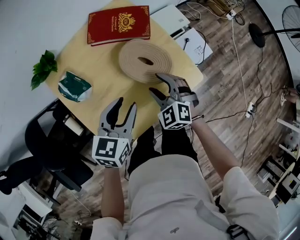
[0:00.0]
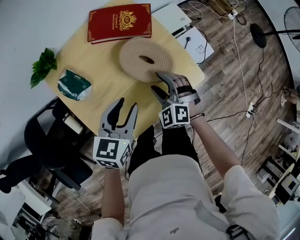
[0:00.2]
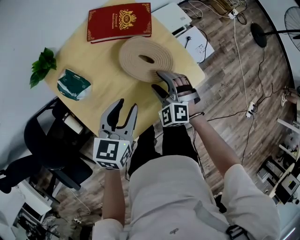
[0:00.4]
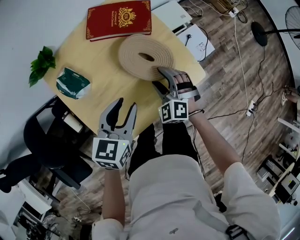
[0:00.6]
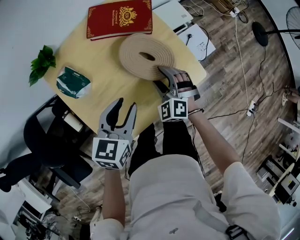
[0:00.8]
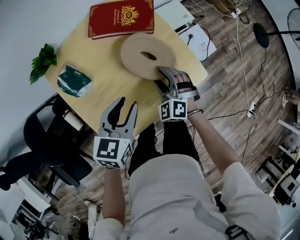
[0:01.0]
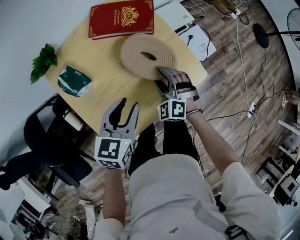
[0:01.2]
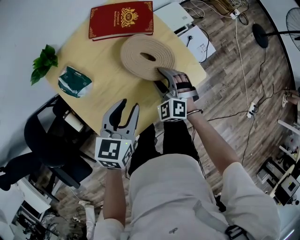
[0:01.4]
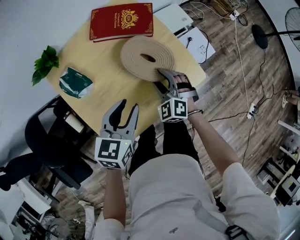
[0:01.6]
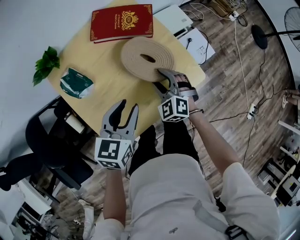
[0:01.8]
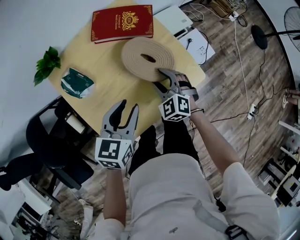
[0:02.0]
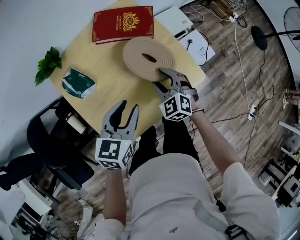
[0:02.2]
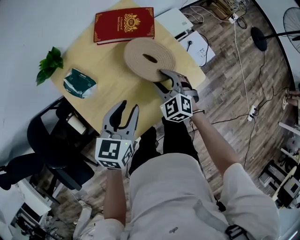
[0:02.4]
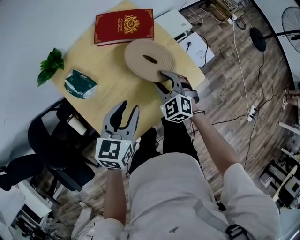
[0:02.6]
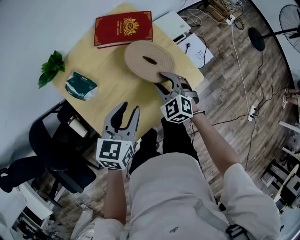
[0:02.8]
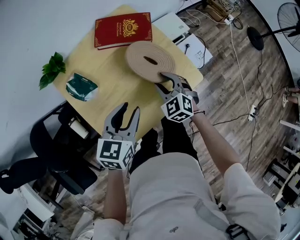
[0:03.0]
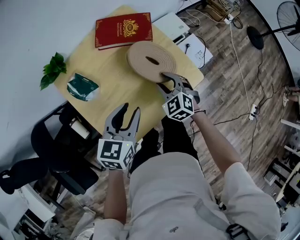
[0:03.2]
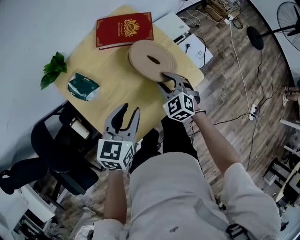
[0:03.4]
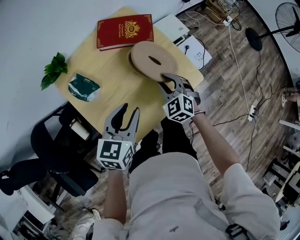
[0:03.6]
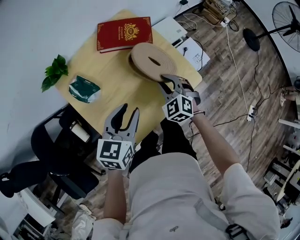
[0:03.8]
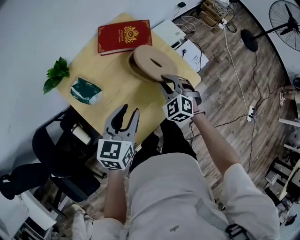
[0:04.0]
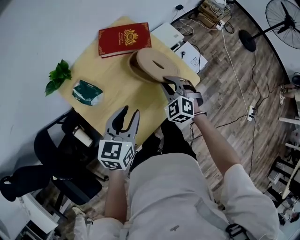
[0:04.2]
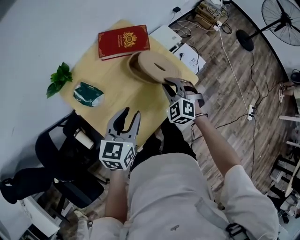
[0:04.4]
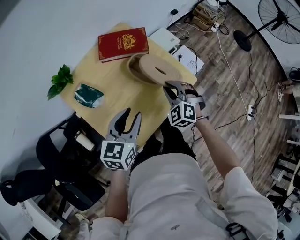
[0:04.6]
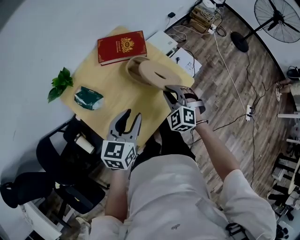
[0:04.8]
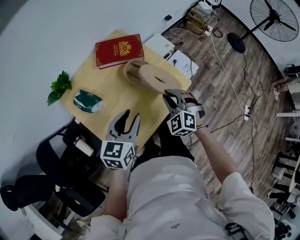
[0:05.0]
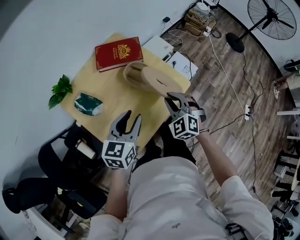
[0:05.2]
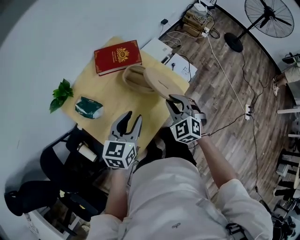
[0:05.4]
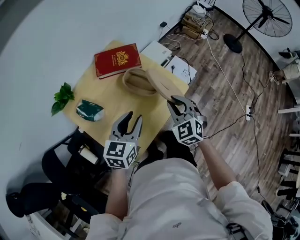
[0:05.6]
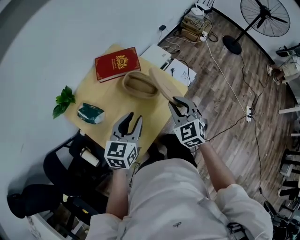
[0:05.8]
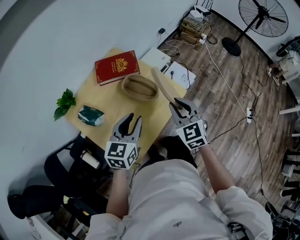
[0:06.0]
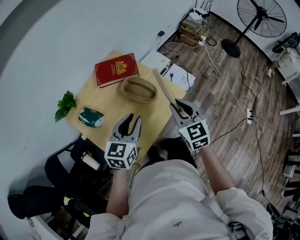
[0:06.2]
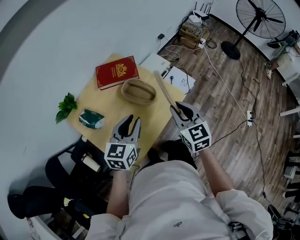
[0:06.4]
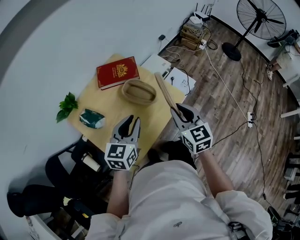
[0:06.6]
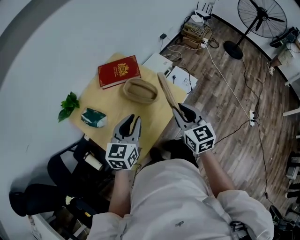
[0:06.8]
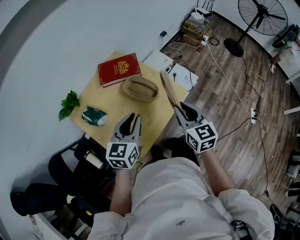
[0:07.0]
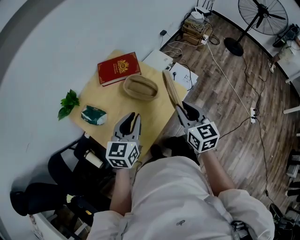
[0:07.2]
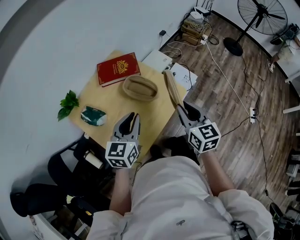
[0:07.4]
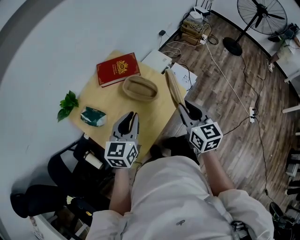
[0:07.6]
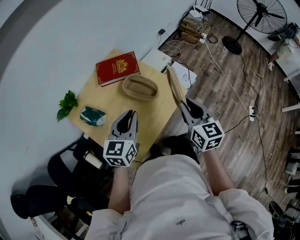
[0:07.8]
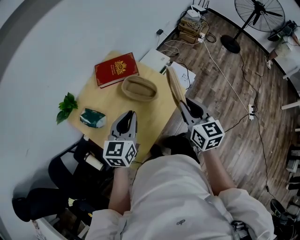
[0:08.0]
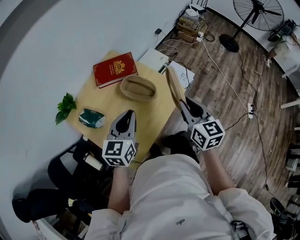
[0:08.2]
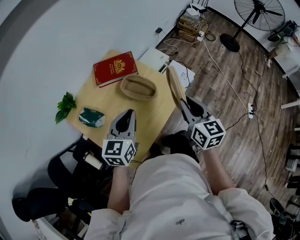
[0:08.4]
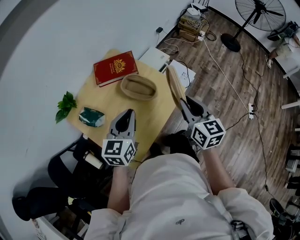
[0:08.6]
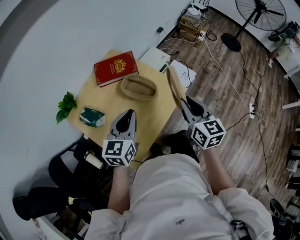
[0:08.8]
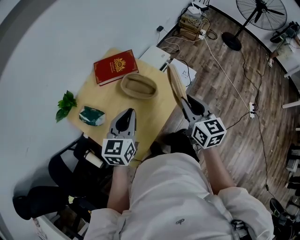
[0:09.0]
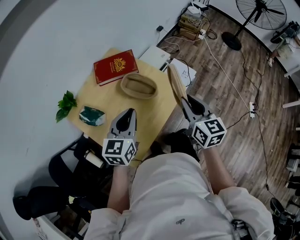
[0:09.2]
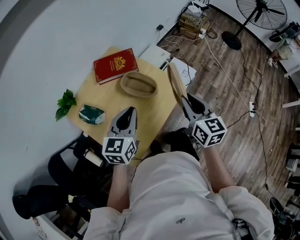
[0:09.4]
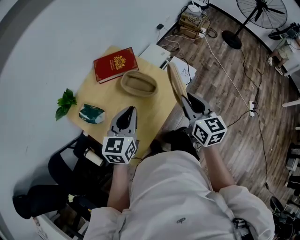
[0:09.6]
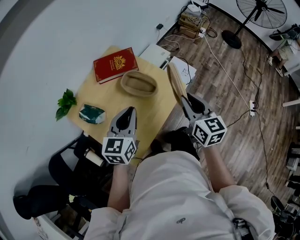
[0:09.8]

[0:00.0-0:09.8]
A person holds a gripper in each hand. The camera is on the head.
0:00.0 to 0:02.8: The grippers stay close to where they were, moving slightly.
0:02.8 to 0:04.2: The grippers move only a little.
0:04.2 to 0:05.6: The right gripper is displaced upward, backward and to the right by roughly 15 cm.
0:05.6 to 0:07.0: The right gripper moves upward and to the right, some 10 cm, and rotates about 40 degrees.
0:07.0 to 0:08.4: The grippers move only a little.
0:08.4 to 0:09.8: Neither gripper changes place.

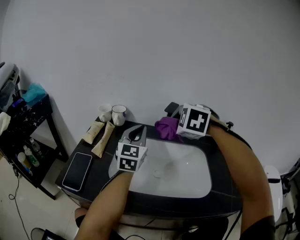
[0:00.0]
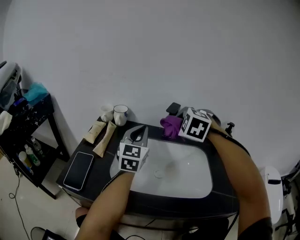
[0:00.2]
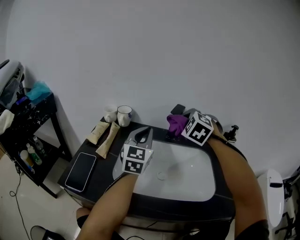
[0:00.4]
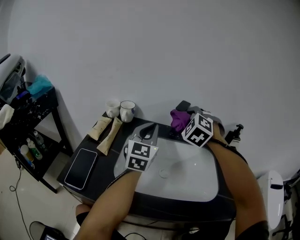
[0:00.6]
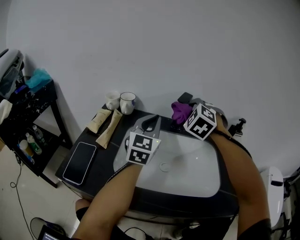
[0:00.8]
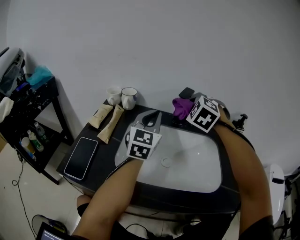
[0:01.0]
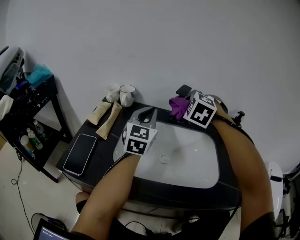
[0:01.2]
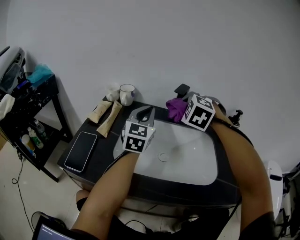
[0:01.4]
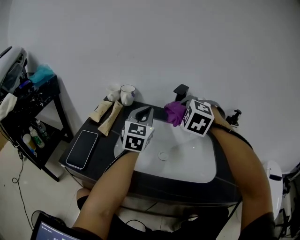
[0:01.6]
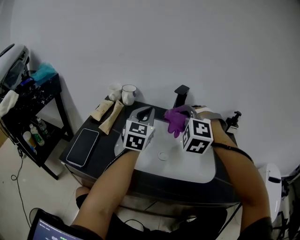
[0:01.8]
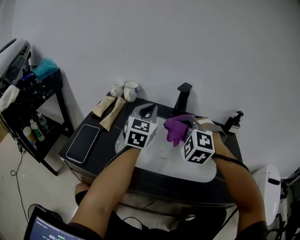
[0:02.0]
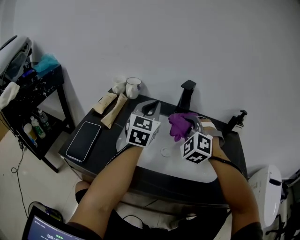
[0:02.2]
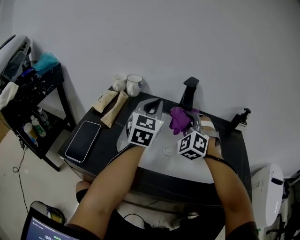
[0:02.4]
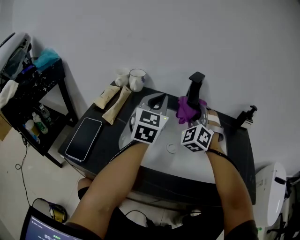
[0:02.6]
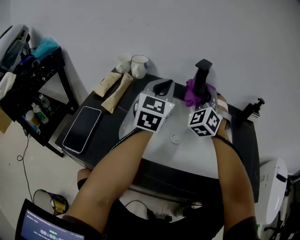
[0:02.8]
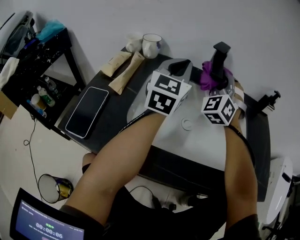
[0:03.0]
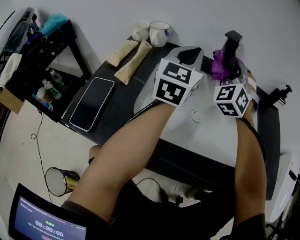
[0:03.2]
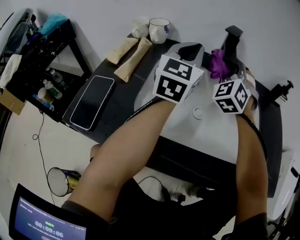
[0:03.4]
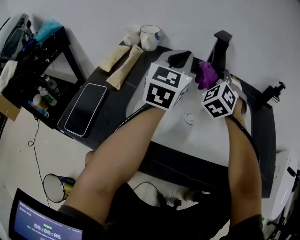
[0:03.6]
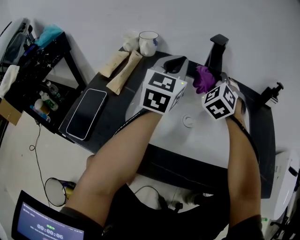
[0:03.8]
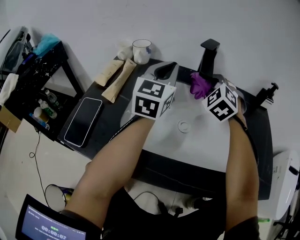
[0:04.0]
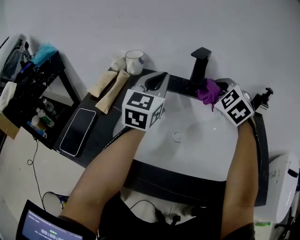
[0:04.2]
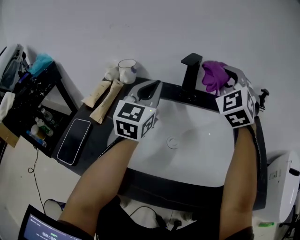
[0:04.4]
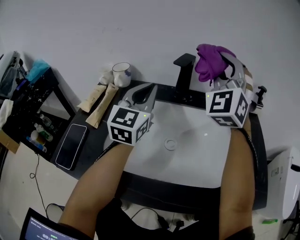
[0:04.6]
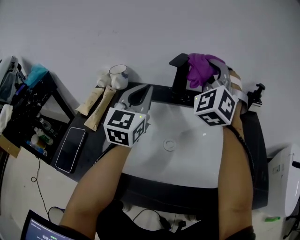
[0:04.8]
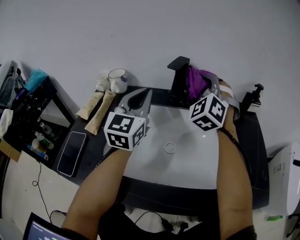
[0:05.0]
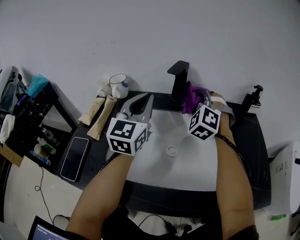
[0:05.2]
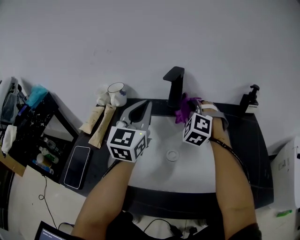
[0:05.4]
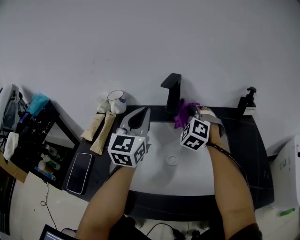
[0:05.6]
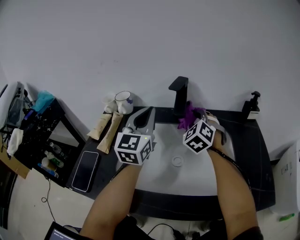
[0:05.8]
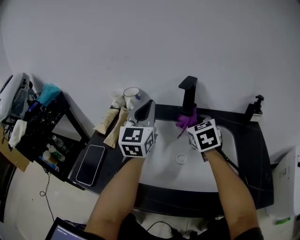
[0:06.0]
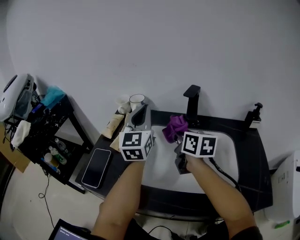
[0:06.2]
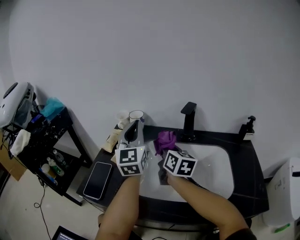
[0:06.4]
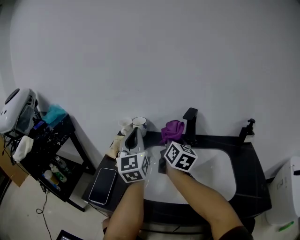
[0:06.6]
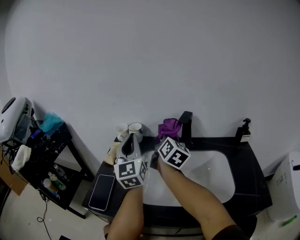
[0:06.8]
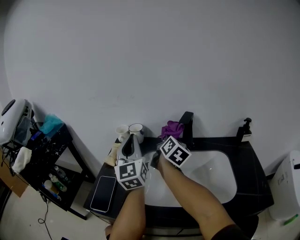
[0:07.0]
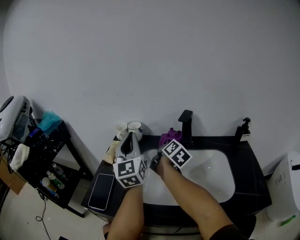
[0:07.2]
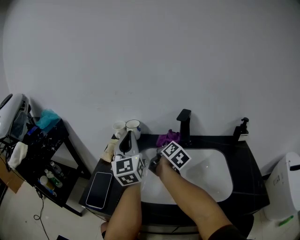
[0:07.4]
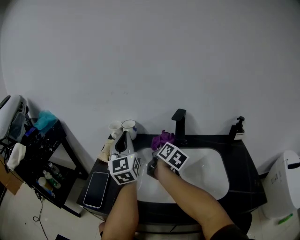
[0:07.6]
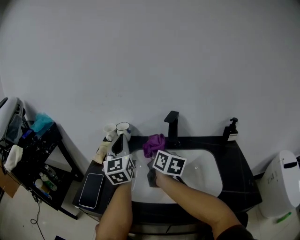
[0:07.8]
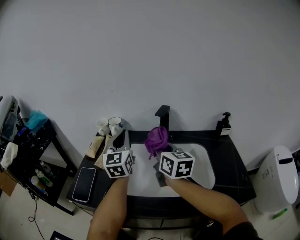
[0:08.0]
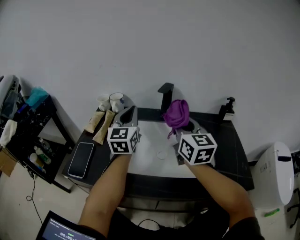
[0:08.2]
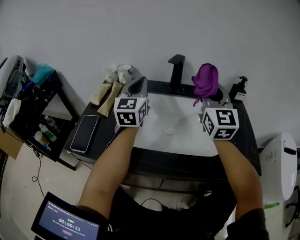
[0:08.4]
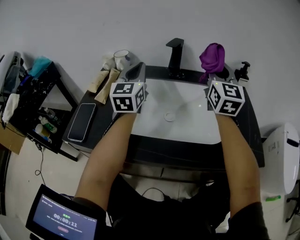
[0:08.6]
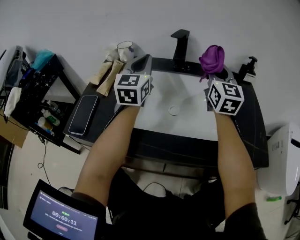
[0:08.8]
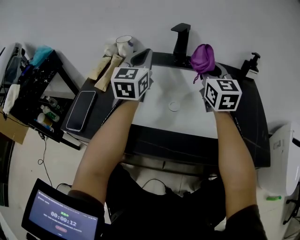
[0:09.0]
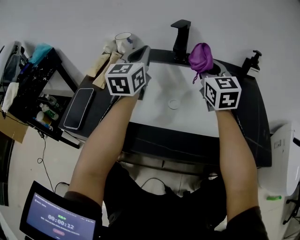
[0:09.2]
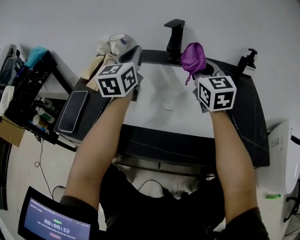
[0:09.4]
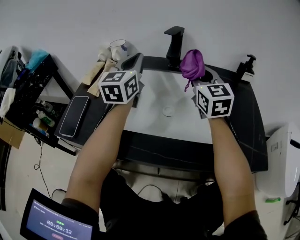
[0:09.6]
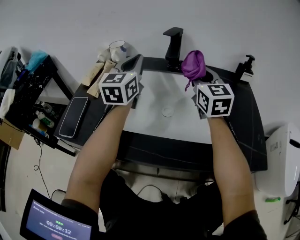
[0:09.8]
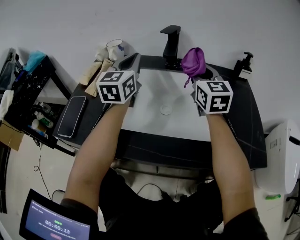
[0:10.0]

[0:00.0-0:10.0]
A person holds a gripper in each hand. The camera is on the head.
0:01.4 to 0:02.8: The right gripper moves approximately 10 cm backward and comes back, and points its fingers approximately 30 degrees further upward.
0:02.8 to 0:04.2: The right gripper rotates approximately 30 degrees.
0:04.2 to 0:05.8: The right gripper reaches roughly 15 cm upward, then returns.
0:05.8 to 0:07.2: Both grippers travel together to the left, roughly 10 cm. The left gripper changes its angle by roughly 20 degrees, while the right gripper rotates around the line of its fingers by about 100 degrees, clockwise from behind.
0:07.2 to 0:08.6: The right gripper goes approximately 25 cm to the right, upward and backward, and rolls counterclockwise, seen from behind, by some 60 degrees. Meanwhile the left gripper travels to the right by approximately 10 cm.
0:08.6 to 0:10.0: The right gripper heads downward, covering some 10 cm.

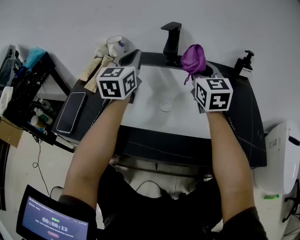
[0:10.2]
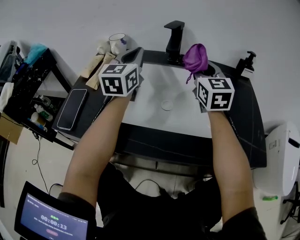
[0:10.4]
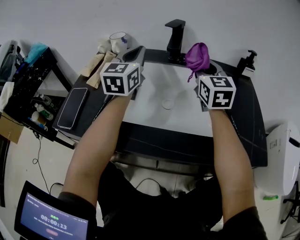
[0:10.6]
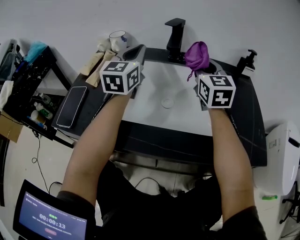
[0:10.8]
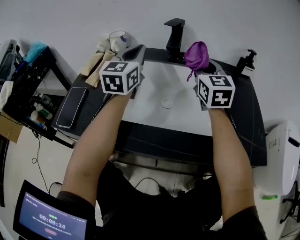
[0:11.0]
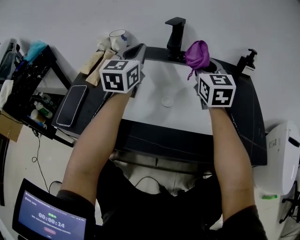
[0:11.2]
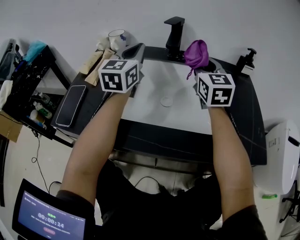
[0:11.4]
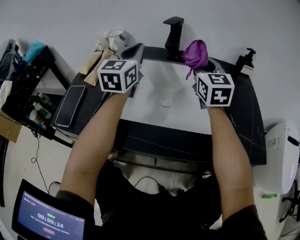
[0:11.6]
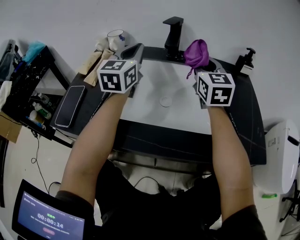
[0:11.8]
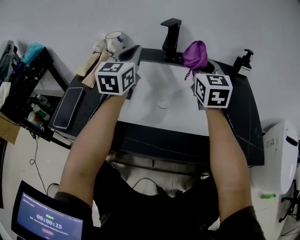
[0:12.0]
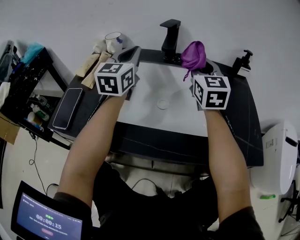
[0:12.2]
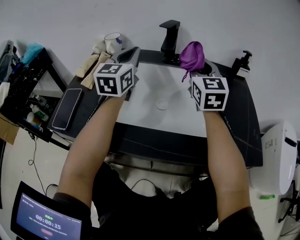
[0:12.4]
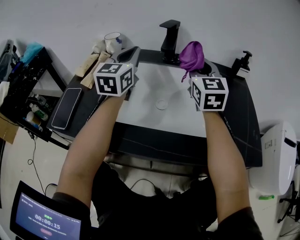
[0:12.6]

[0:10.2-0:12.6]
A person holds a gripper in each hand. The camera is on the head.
0:10.2 to 0:11.4: The two grippers keep their place.
0:11.4 to 0:12.6: Both grippers stay about where they are.

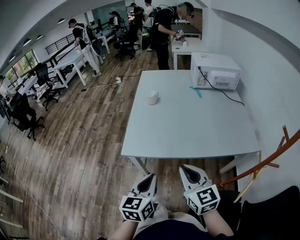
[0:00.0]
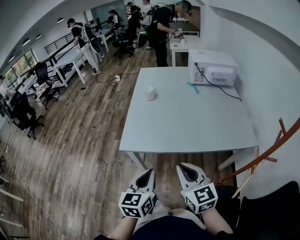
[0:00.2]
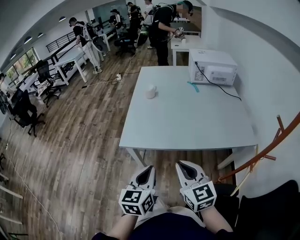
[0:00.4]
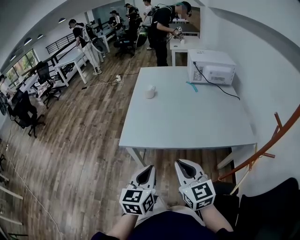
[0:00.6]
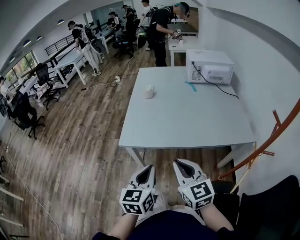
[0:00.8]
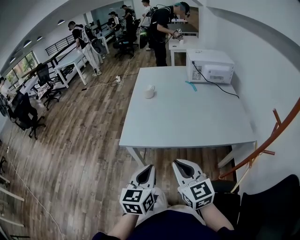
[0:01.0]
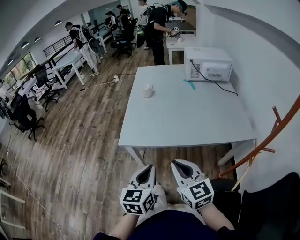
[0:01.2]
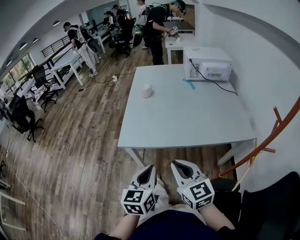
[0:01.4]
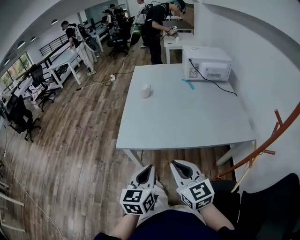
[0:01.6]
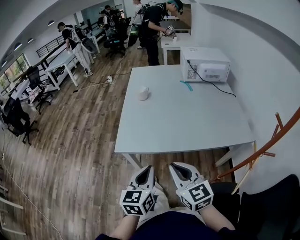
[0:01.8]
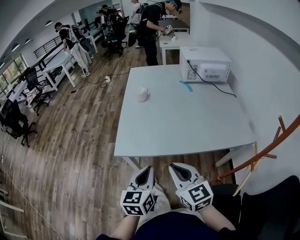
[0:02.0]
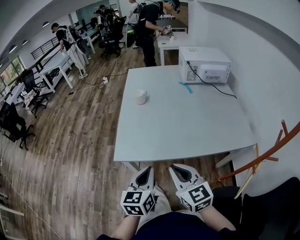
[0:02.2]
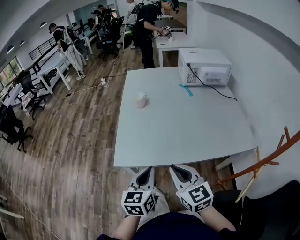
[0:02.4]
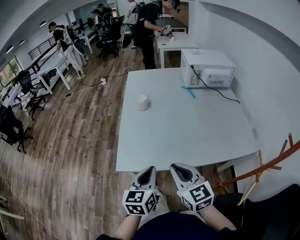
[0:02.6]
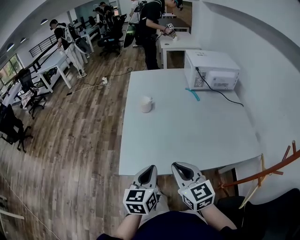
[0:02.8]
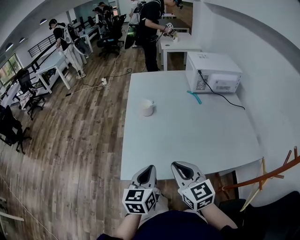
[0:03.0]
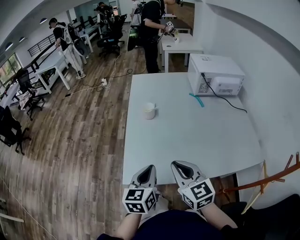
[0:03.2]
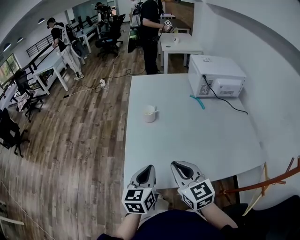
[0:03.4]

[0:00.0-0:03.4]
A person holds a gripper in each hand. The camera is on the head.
0:00.0 to 0:01.6: The grippers make only small movements.
0:01.6 to 0:03.4: Both grippers move forward, some 25 cm.
